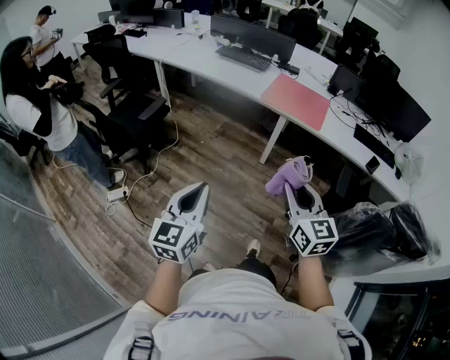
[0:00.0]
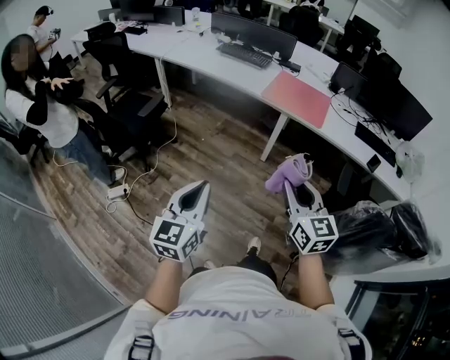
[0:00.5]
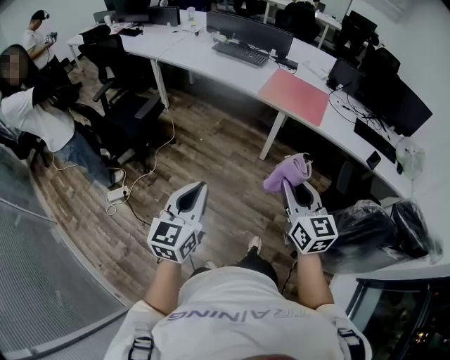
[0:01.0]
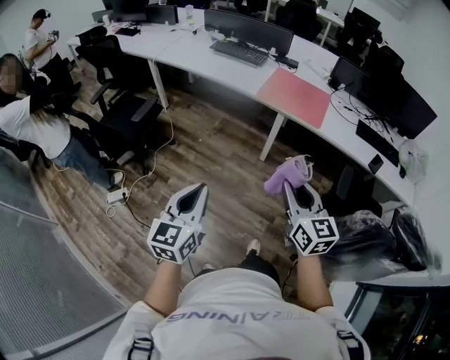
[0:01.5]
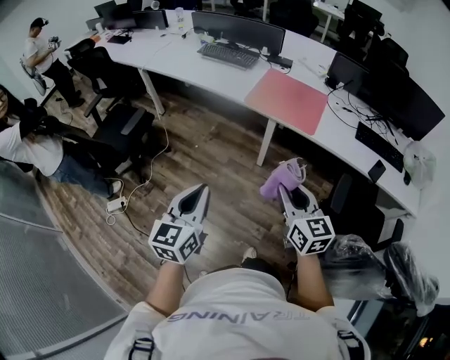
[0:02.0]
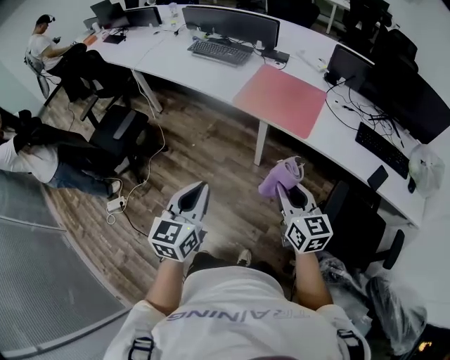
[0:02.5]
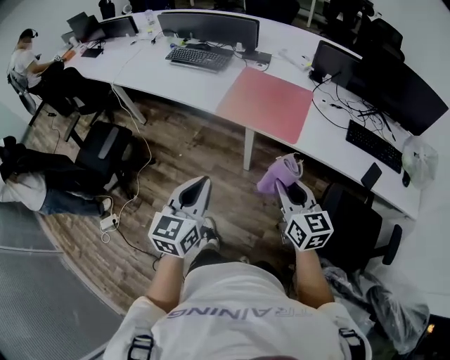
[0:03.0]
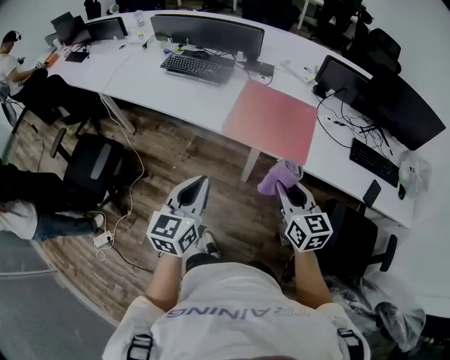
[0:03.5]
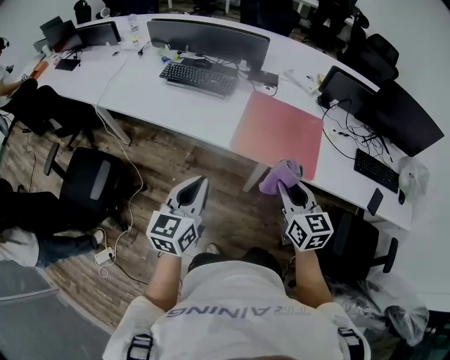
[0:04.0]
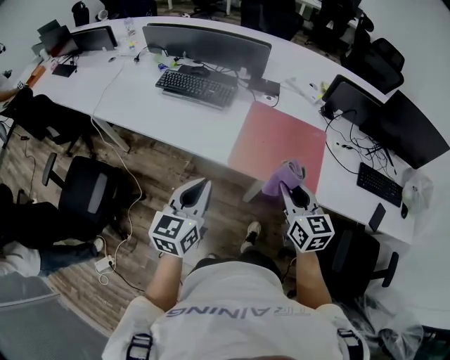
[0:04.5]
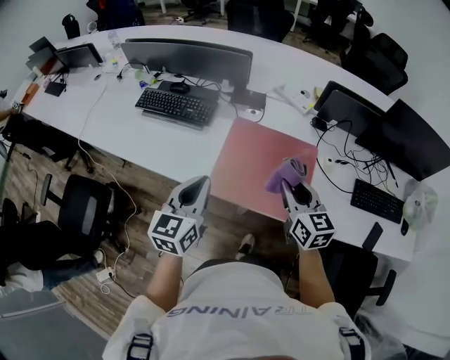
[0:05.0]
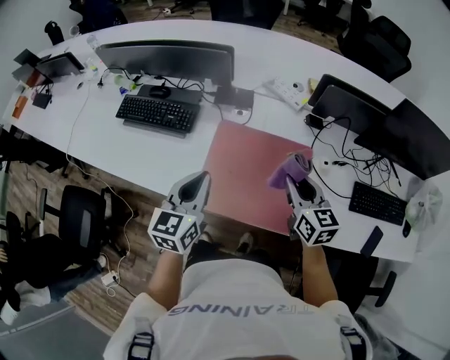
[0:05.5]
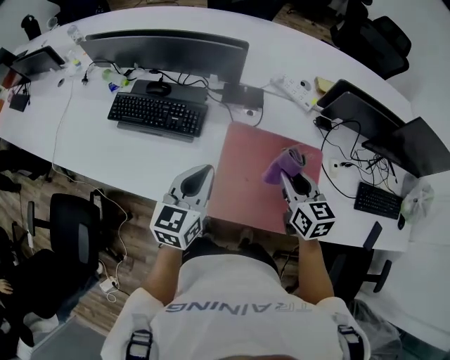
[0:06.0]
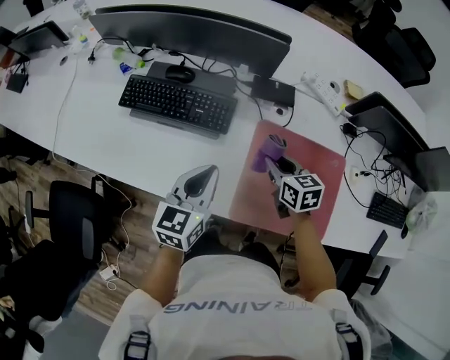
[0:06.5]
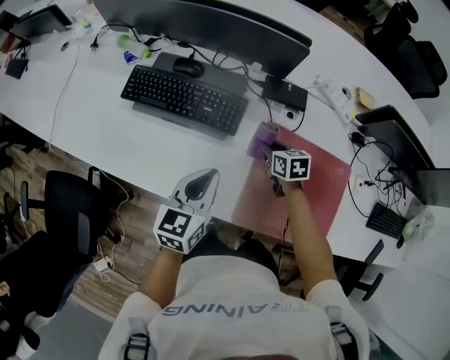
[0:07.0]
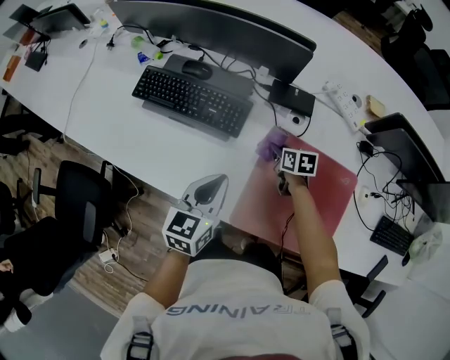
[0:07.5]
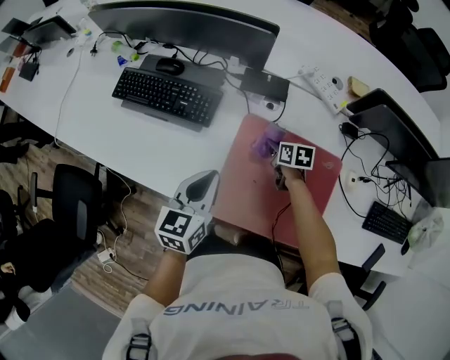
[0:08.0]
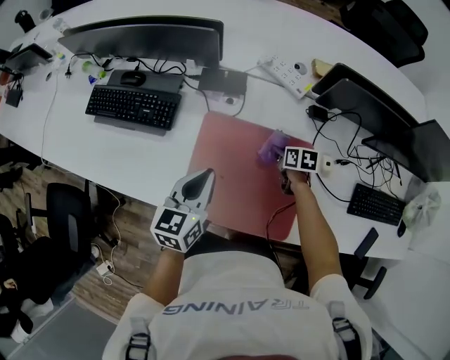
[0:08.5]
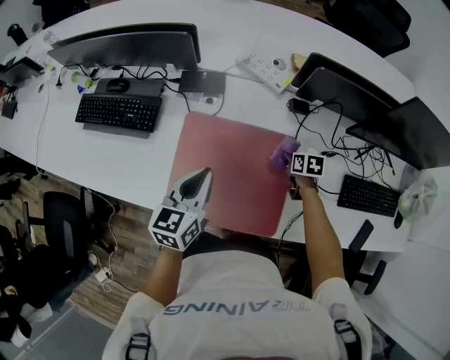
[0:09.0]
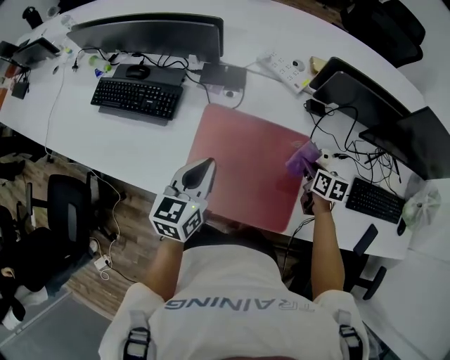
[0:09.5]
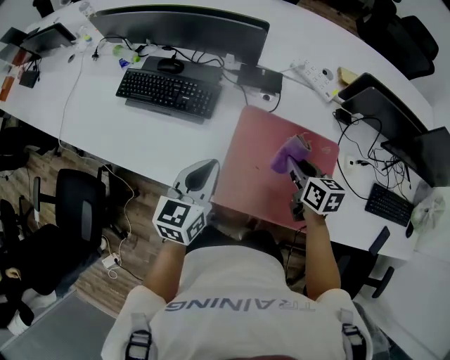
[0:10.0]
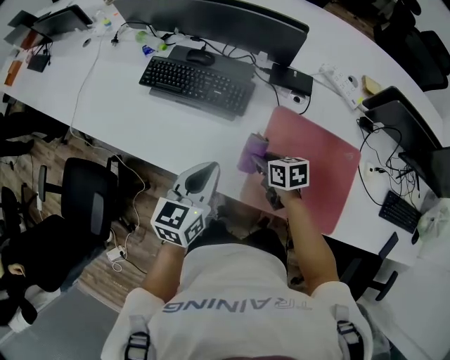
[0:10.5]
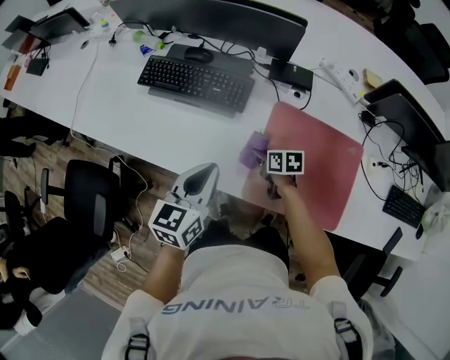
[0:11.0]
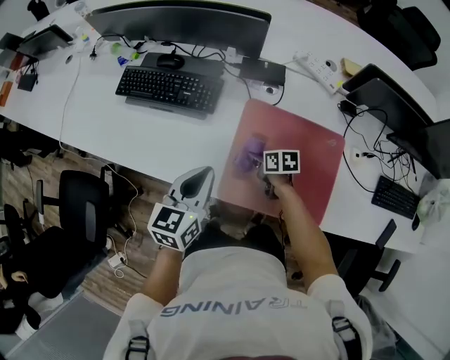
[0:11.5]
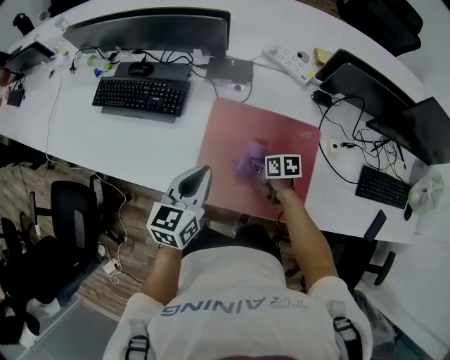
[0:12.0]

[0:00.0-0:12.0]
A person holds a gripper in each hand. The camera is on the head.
0:00.0 to 0:02.0: Both grippers travel together forward and to the right, roughly 20 cm.
0:02.0 to 0:04.0: The two grippers go roughly 35 cm forward.
0:04.0 to 0:06.0: Both grippers travel together forward, approximately 40 cm.
0:06.0 to 0:08.0: The right gripper goes some 30 cm downward and forward, and swivels some 30 degrees; the left gripper moves downward, about 5 cm, and reaches about 10 cm to the left, then returns.
0:08.0 to 0:10.0: The left gripper moves some 15 cm to the right and comes back. Meanwhile the right gripper moves upward and backward, about 20 cm, and reaches approximately 25 cm to the right, then returns.
0:10.0 to 0:12.0: The right gripper travels downward by about 15 cm, goes to the left and returns, roughly 20 cm each way, and turns by approximately 30 degrees; the left gripper is displaced to the right by some 5 cm.

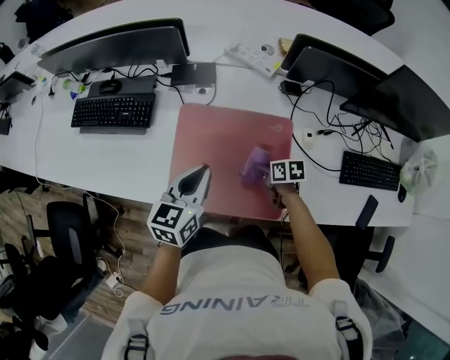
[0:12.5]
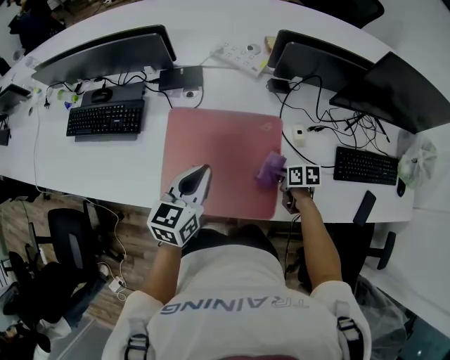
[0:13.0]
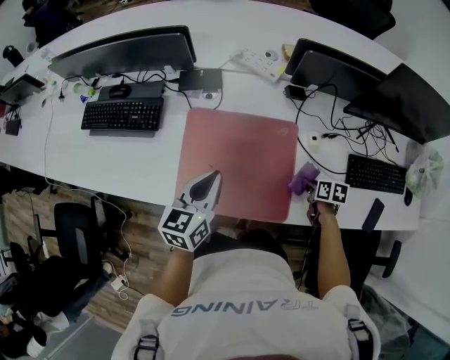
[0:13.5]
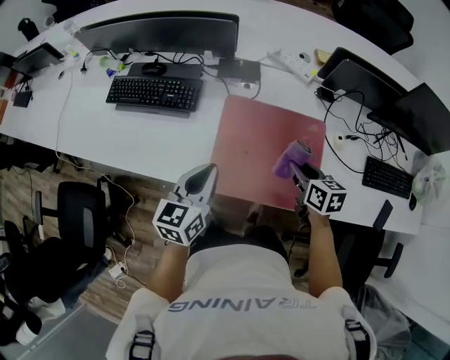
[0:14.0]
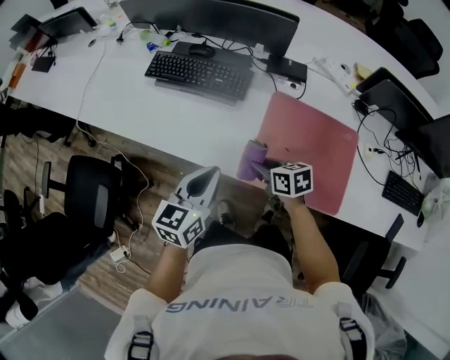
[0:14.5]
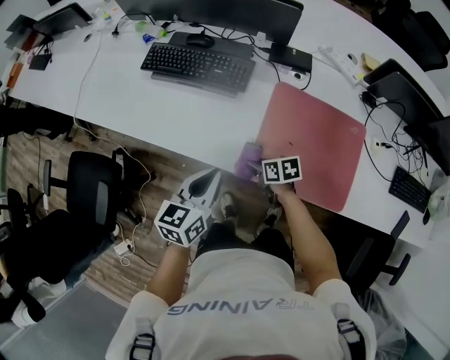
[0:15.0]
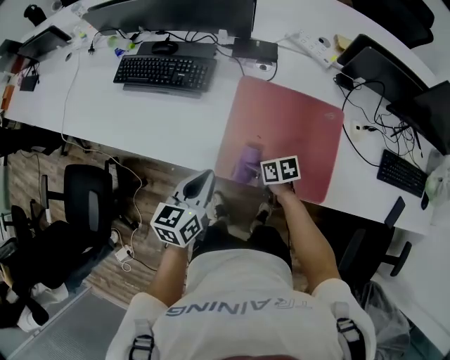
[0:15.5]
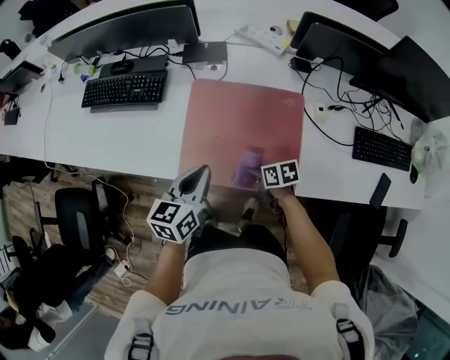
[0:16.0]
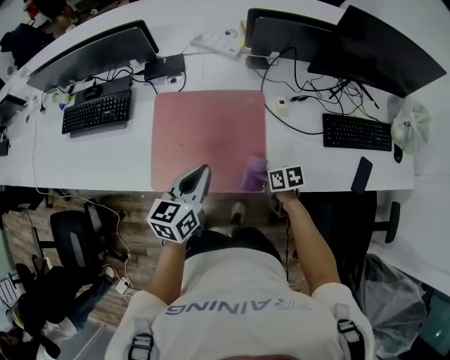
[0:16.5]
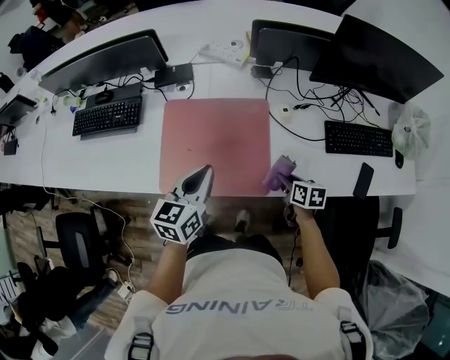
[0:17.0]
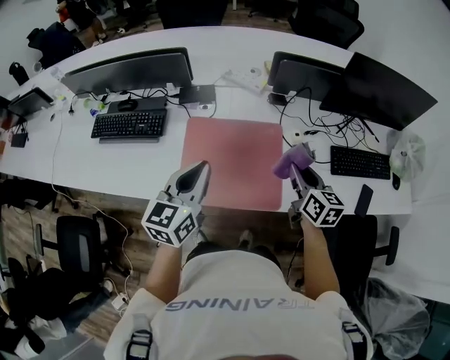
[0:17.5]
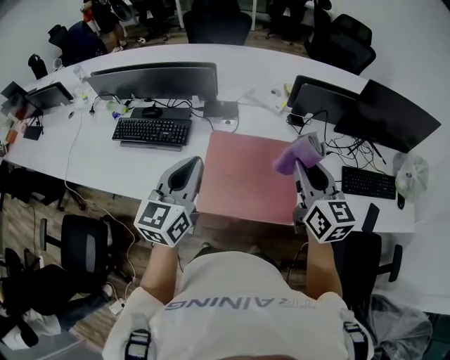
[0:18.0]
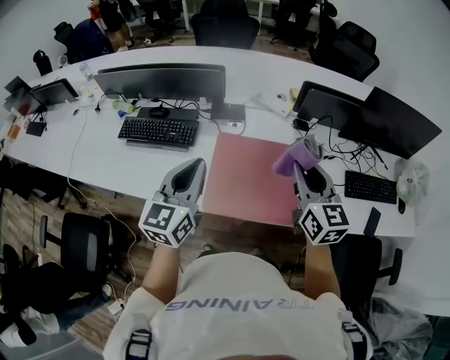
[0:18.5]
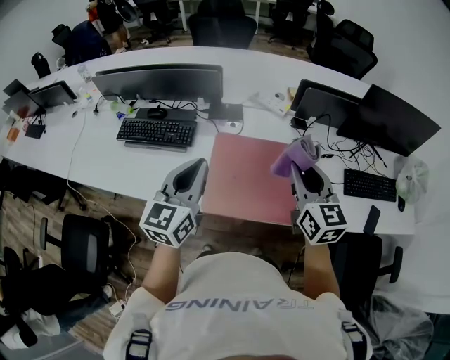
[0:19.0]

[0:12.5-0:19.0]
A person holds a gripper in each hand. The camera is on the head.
0:12.5 to 0:14.5: The grippers both shift to the left by approximately 30 cm. The right gripper rotates roughly 20 degrees.
0:14.5 to 0:17.0: The left gripper changes place by some 35 cm; the right gripper moves some 50 cm, and swivels roughly 40 degrees.
0:17.0 to 0:19.0: The left gripper heads to the left and upward, covering some 25 cm, and turns by approximately 20 degrees. Meanwhile the right gripper goes approximately 40 cm upward and to the left, and angles its fingers upward, by some 40 degrees.

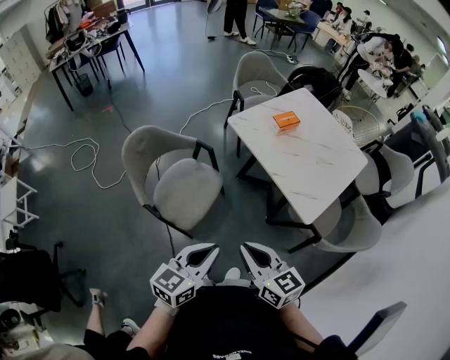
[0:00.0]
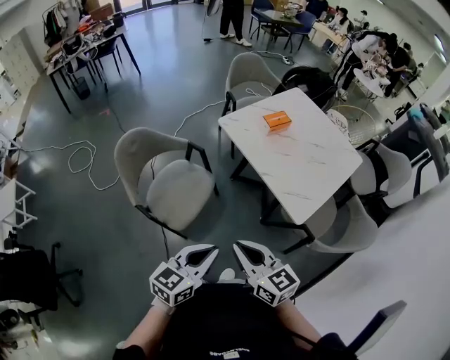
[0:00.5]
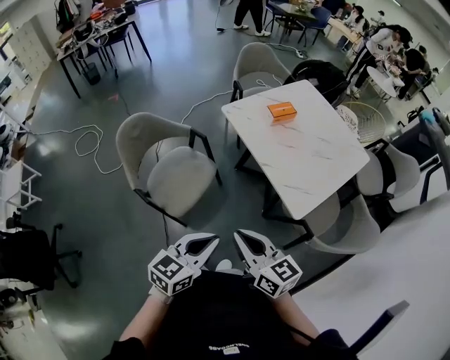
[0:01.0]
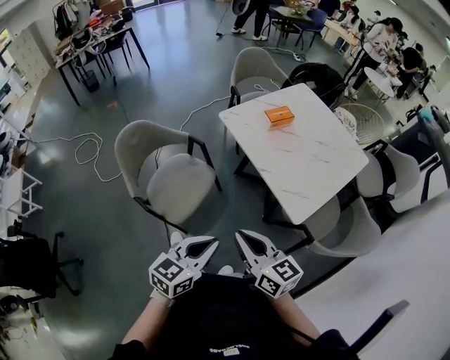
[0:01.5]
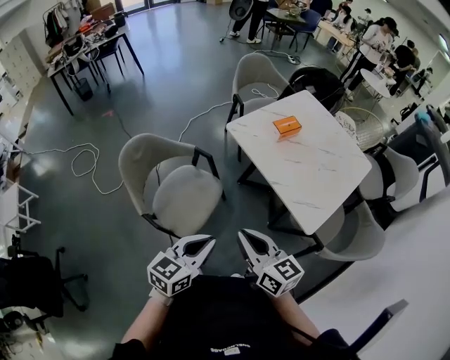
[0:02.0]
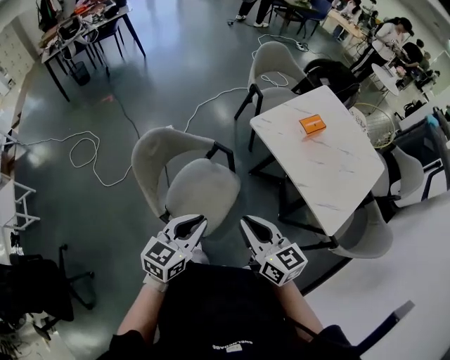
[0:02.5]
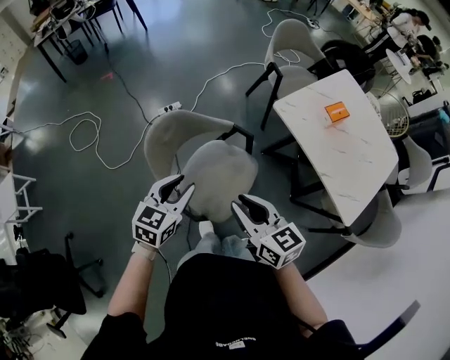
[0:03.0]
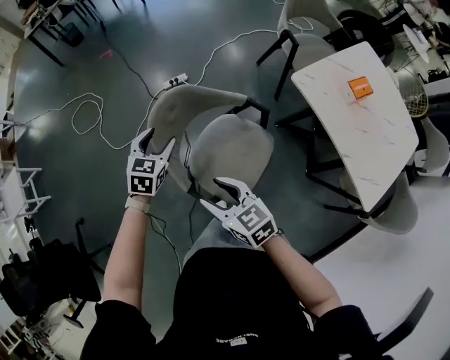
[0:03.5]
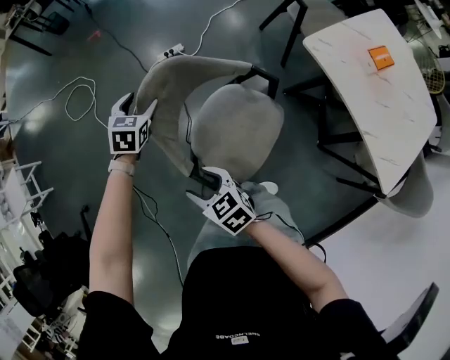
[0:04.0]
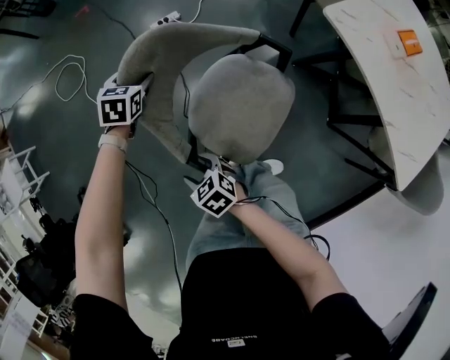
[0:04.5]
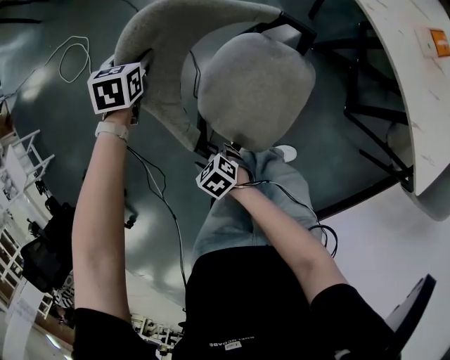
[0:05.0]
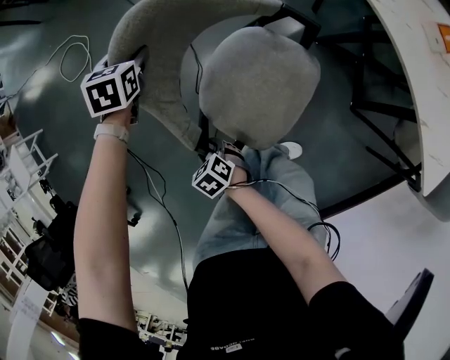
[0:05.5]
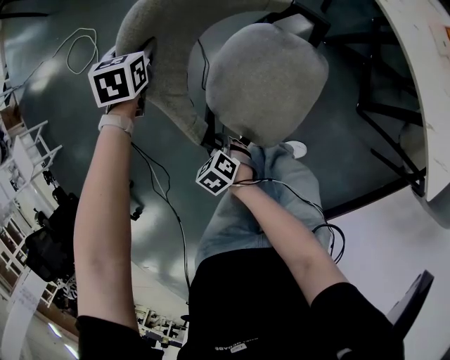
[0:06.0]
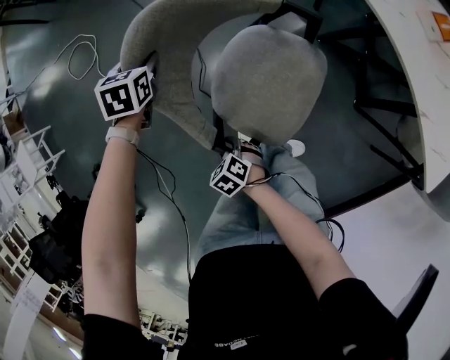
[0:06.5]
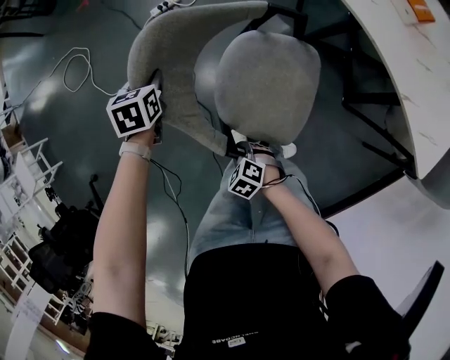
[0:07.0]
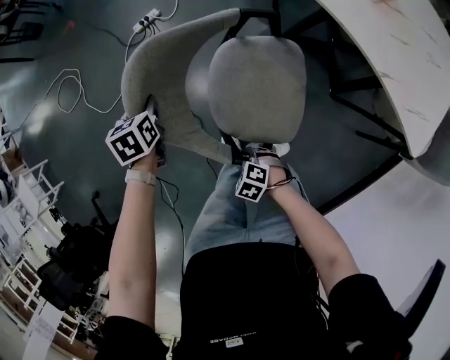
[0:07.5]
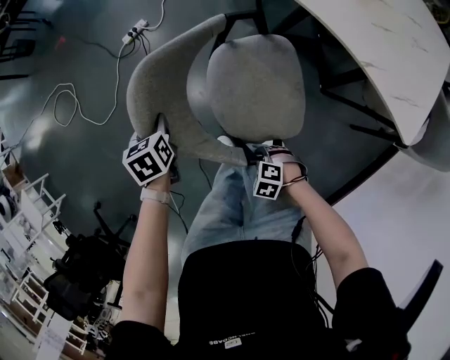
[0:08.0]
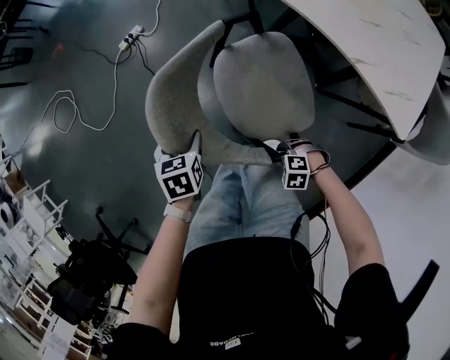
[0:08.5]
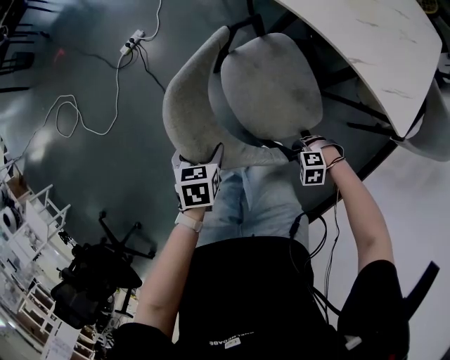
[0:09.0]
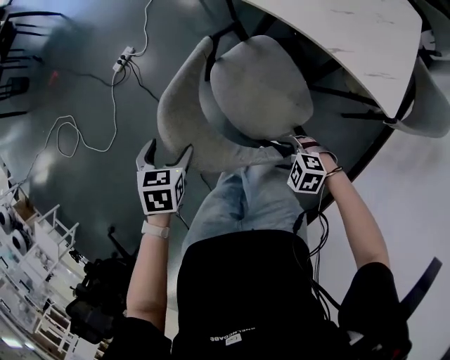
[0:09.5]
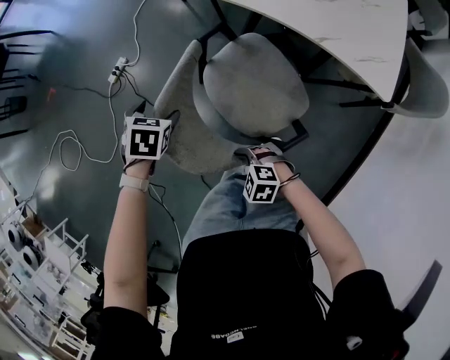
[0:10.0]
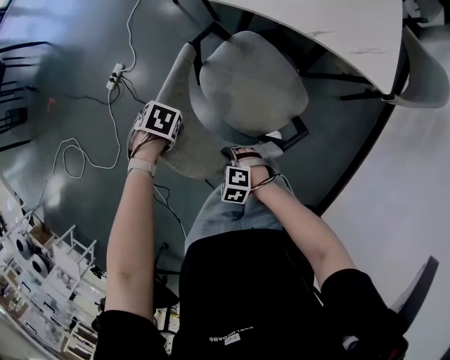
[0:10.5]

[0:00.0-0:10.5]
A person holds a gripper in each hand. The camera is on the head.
0:00.0 to 0:02.0: The grippers both shift forward by roughly 10 cm. The left gripper travels to the right and back again, about 10 cm each way.
0:02.0 to 0:04.0: Both grippers are carried some 50 cm. The right gripper swivels some 40 degrees, and opens up. Meanwhile the left gripper tilts its fingers approximately 30 degrees downward, and opens up.
0:04.0 to 0:06.5: The left gripper moves downward, roughly 10 cm. The right gripper shifts approximately 25 cm downward, changes its angle by approximately 30 degrees, and closes up.
0:06.5 to 0:08.5: The right gripper ends up approximately 35 cm from where it was, and swivels roughly 30 degrees. The left gripper moves about 30 cm.
0:08.5 to 0:10.5: The right gripper moves some 20 cm, rotates about 30 degrees, and opens, then closes once more; the left gripper moves about 5 cm upward and comes back, and turns by approximately 60 degrees.
